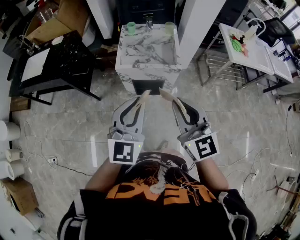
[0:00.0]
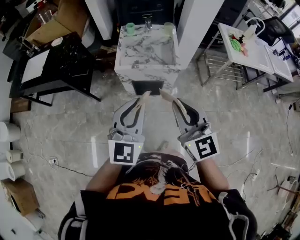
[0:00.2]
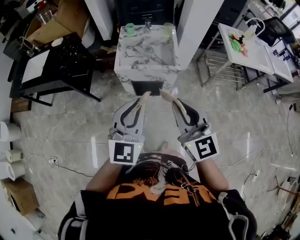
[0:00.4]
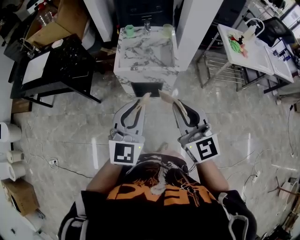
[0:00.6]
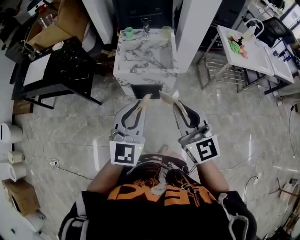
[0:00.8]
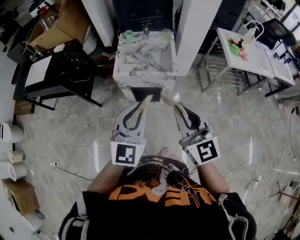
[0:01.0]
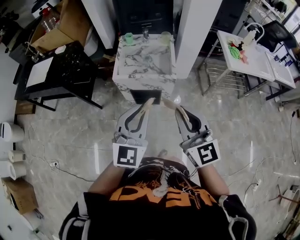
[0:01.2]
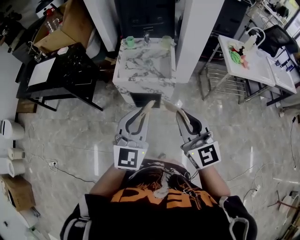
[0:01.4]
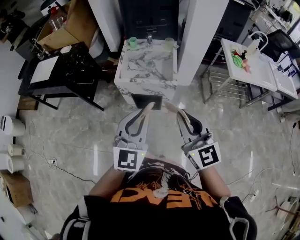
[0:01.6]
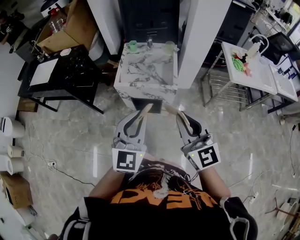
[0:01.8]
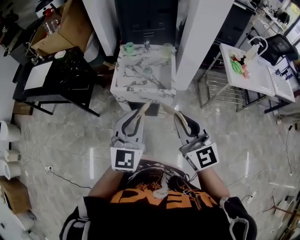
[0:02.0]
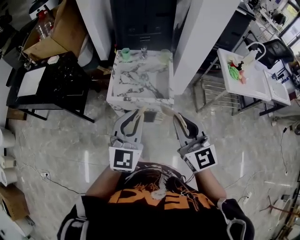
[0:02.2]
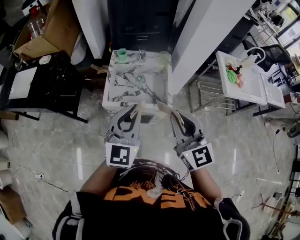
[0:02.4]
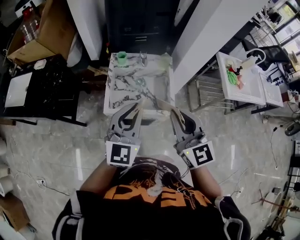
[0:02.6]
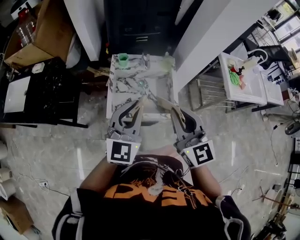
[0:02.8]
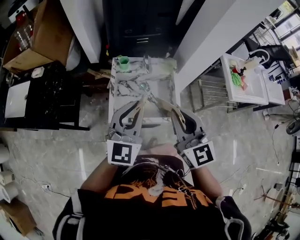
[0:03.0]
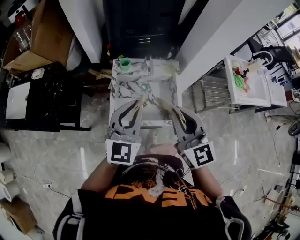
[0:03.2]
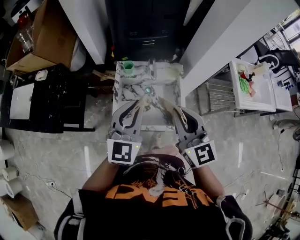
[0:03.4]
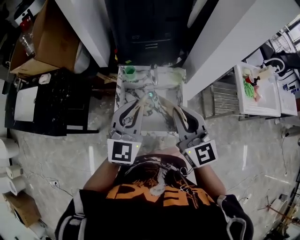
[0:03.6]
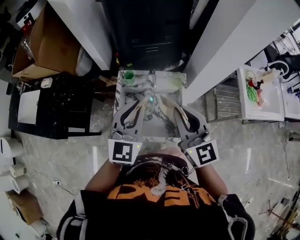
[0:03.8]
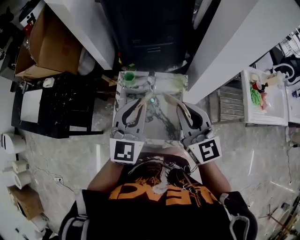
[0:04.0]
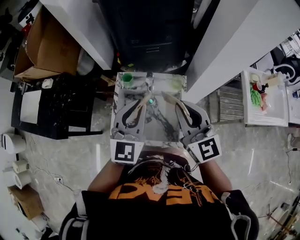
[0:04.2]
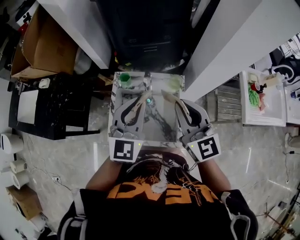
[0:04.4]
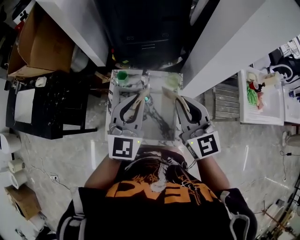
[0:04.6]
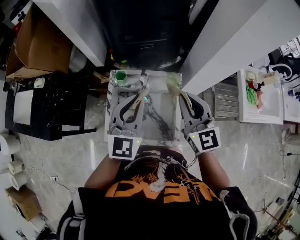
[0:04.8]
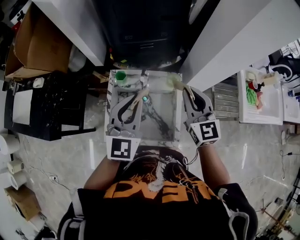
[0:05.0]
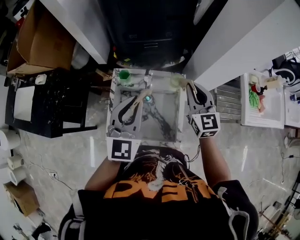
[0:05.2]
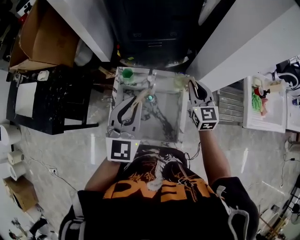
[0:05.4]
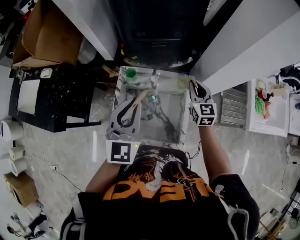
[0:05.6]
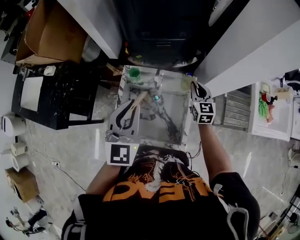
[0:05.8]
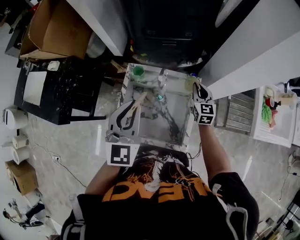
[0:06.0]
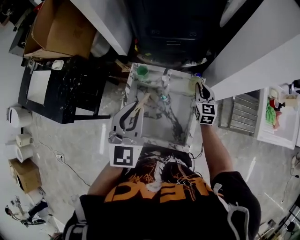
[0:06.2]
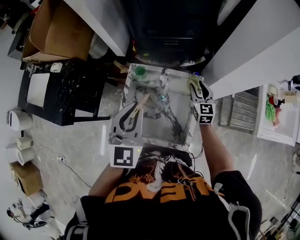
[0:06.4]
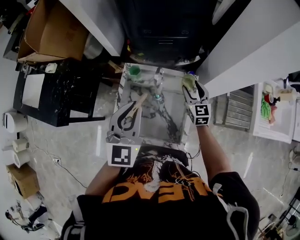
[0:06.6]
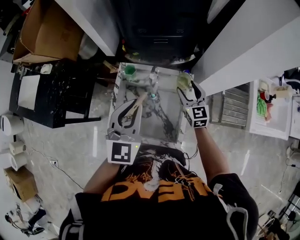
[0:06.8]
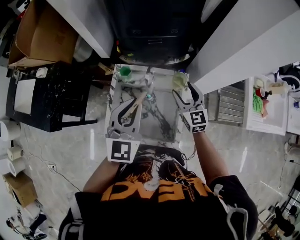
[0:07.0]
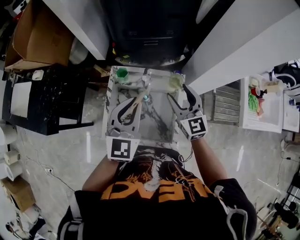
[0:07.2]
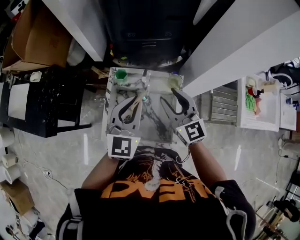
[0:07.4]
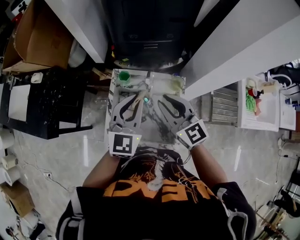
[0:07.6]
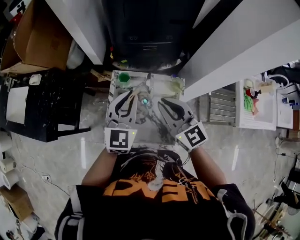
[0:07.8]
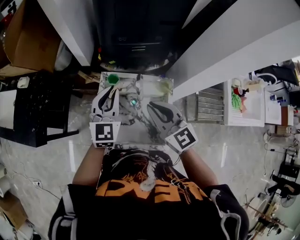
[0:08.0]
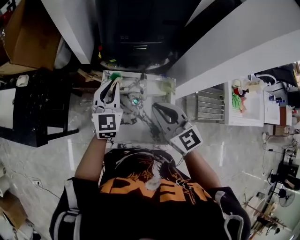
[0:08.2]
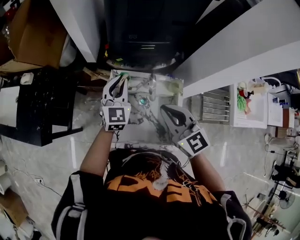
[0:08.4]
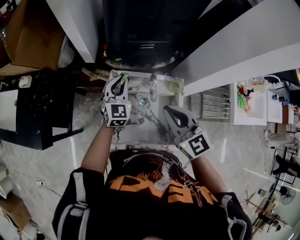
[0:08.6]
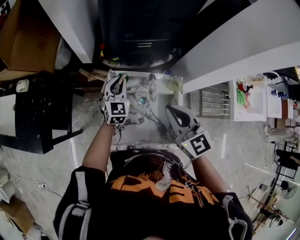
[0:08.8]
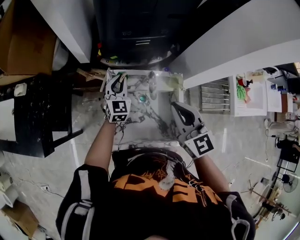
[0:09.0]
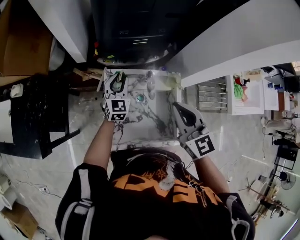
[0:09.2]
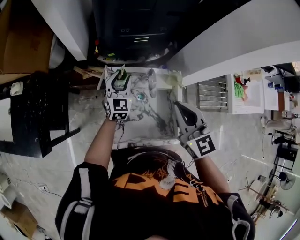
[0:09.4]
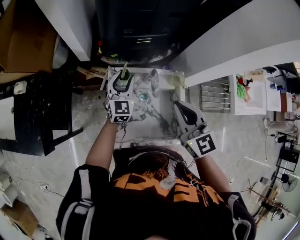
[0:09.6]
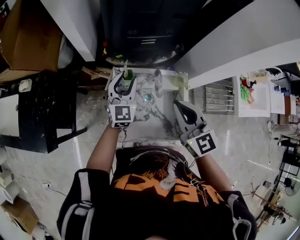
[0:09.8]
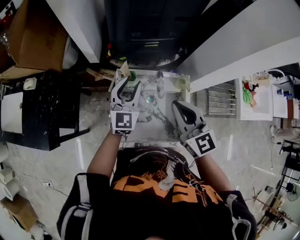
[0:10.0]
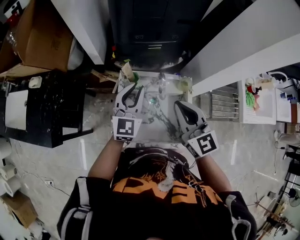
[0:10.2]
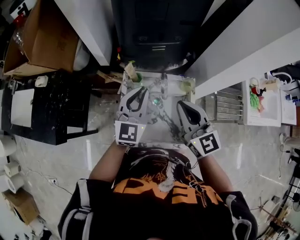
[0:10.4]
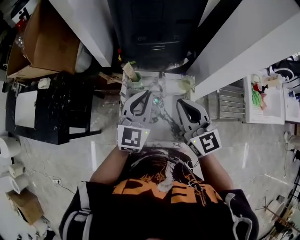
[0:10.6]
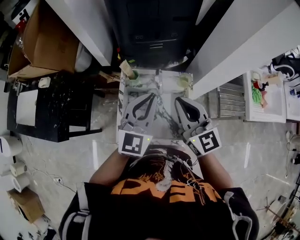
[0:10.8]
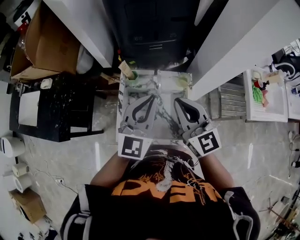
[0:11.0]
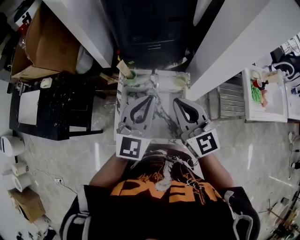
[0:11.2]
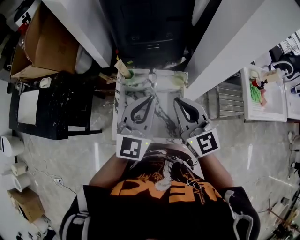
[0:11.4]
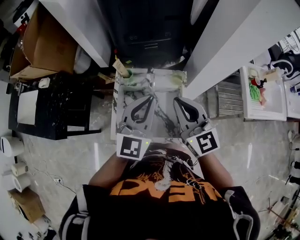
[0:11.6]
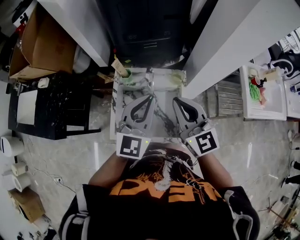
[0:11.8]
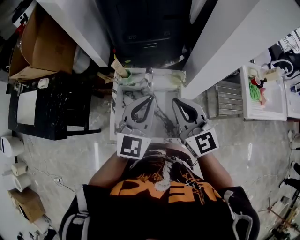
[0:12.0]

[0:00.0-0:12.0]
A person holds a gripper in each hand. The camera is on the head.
0:00.0 to 0:01.6: Both grippers move to the right, about 10 cm.
0:01.6 to 0:03.0: The grippers both shift forward by roughly 35 cm.
0:03.0 to 0:04.4: Both grippers travel together forward and to the right, roughly 20 cm.
0:04.4 to 0:06.0: The right gripper goes about 30 cm downward and forward, and changes its angle by some 20 degrees. Meanwhile the left gripper moves to the left, some 5 cm.
0:06.0 to 0:07.6: The right gripper moves upward, to the left and backward, roughly 25 cm, rotates about 30 degrees, and opens and closes again.
0:07.6 to 0:09.0: The left gripper travels downward and forward by some 25 cm.
0:09.0 to 0:10.4: The left gripper goes about 20 cm upward and backward, and opens and closes again.
0:10.4 to 0:12.0: The right gripper is displaced to the right by about 5 cm, while the left gripper is displaced to the right, backward and upward by approximately 15 cm.

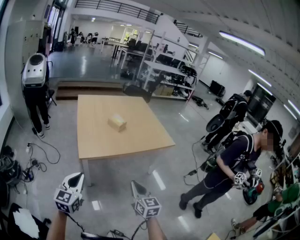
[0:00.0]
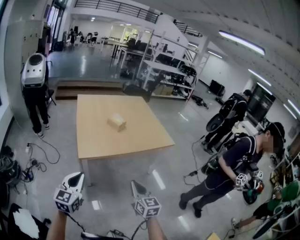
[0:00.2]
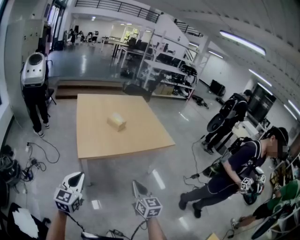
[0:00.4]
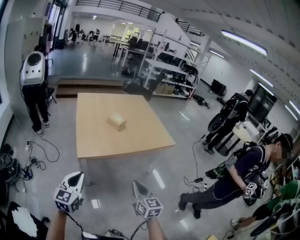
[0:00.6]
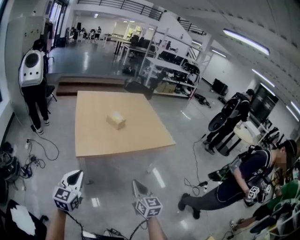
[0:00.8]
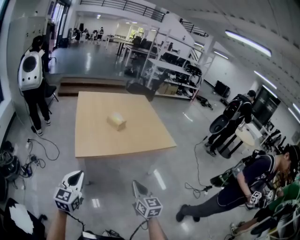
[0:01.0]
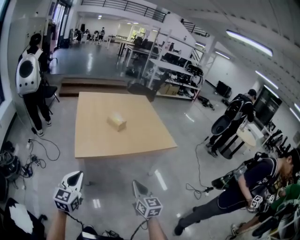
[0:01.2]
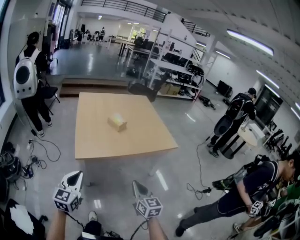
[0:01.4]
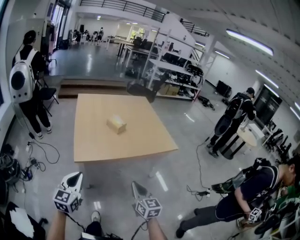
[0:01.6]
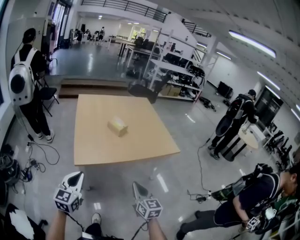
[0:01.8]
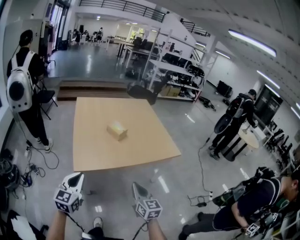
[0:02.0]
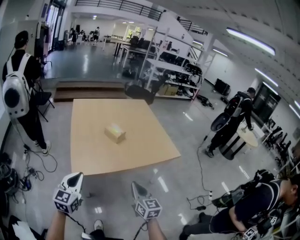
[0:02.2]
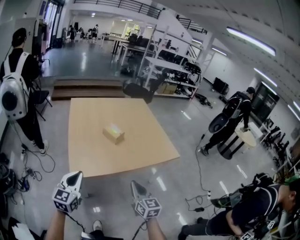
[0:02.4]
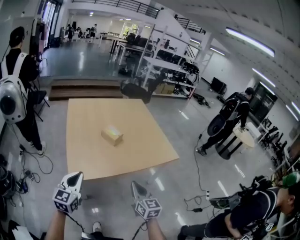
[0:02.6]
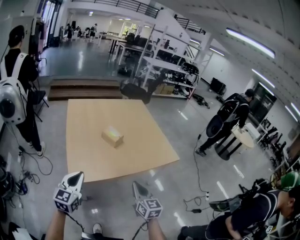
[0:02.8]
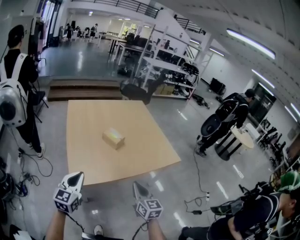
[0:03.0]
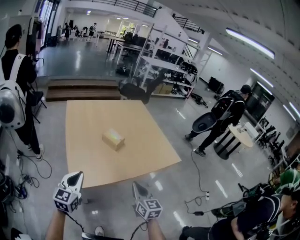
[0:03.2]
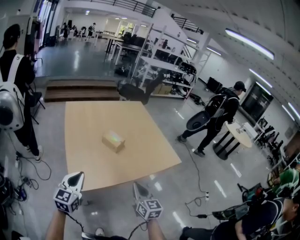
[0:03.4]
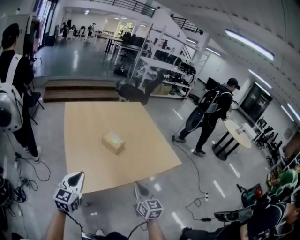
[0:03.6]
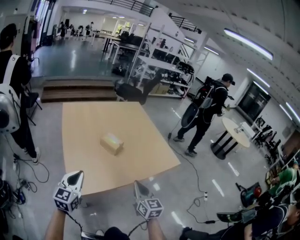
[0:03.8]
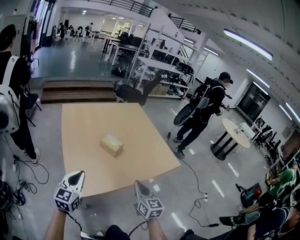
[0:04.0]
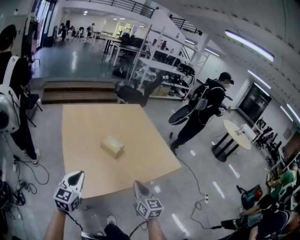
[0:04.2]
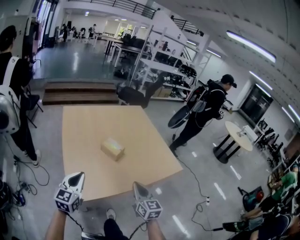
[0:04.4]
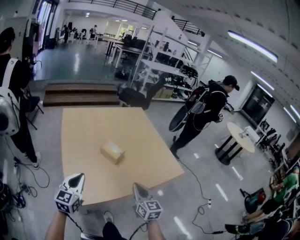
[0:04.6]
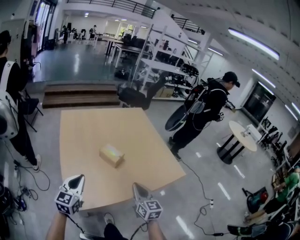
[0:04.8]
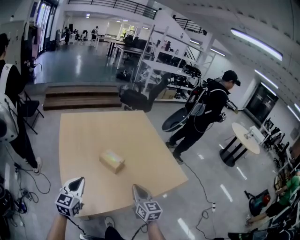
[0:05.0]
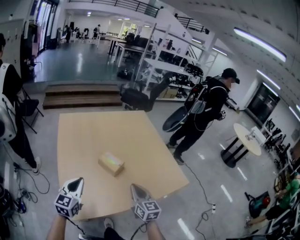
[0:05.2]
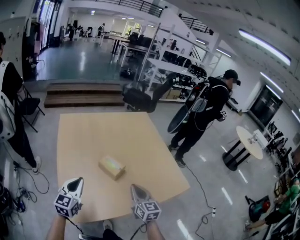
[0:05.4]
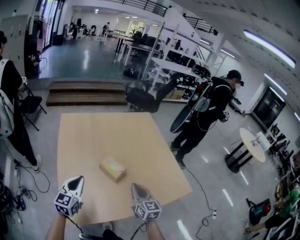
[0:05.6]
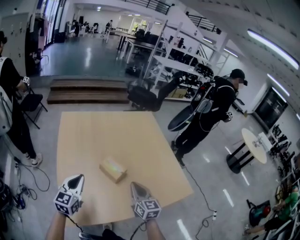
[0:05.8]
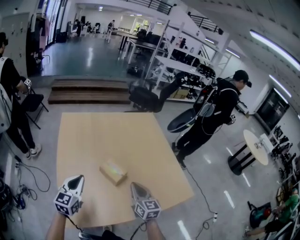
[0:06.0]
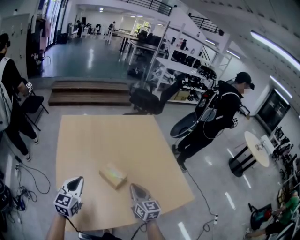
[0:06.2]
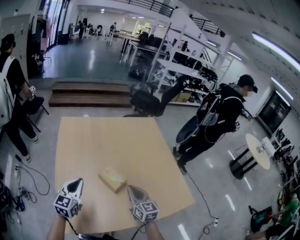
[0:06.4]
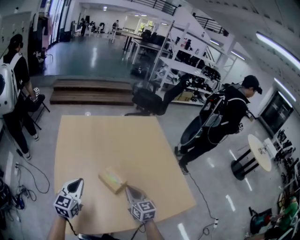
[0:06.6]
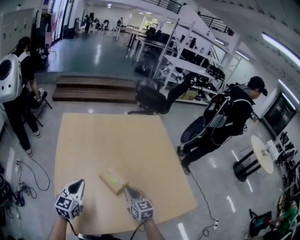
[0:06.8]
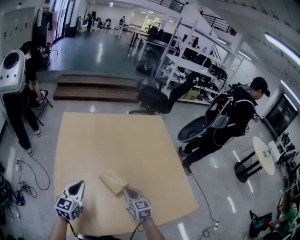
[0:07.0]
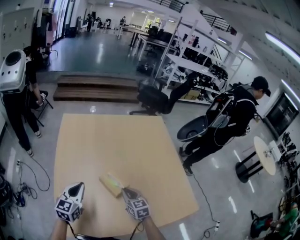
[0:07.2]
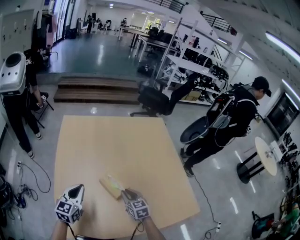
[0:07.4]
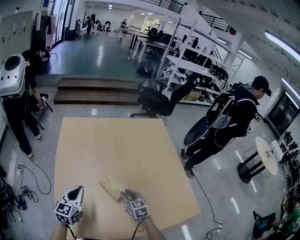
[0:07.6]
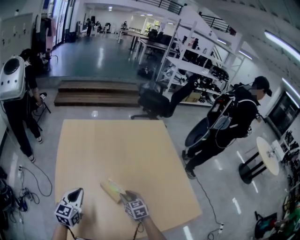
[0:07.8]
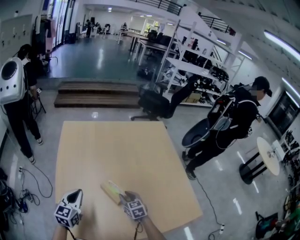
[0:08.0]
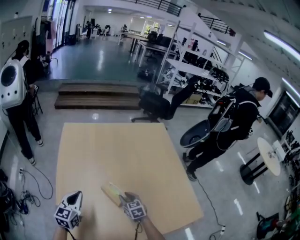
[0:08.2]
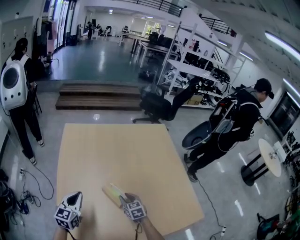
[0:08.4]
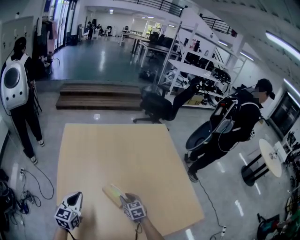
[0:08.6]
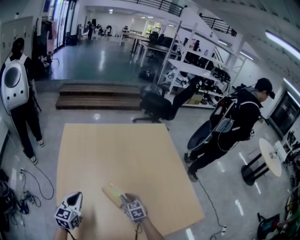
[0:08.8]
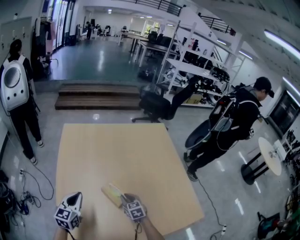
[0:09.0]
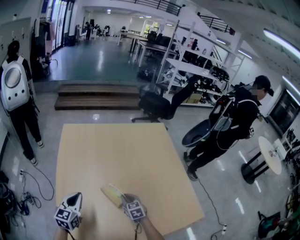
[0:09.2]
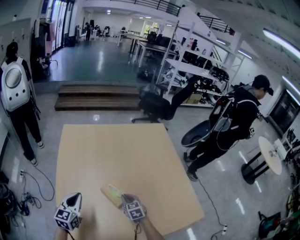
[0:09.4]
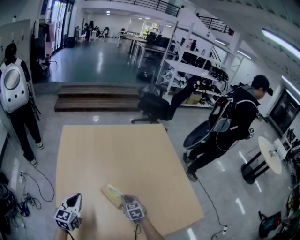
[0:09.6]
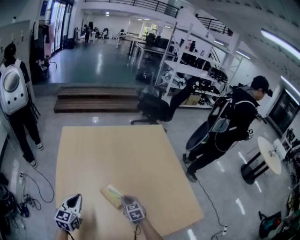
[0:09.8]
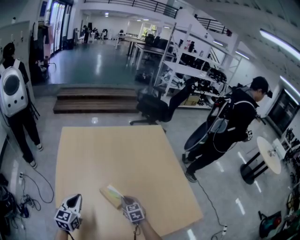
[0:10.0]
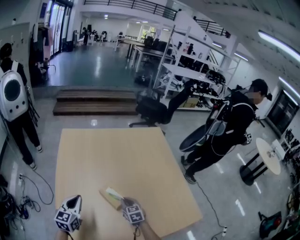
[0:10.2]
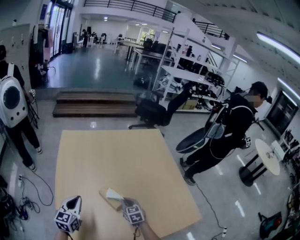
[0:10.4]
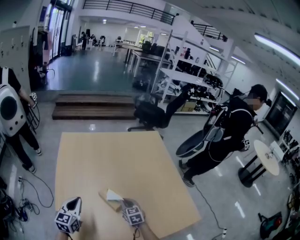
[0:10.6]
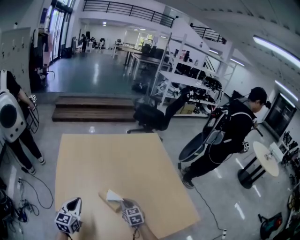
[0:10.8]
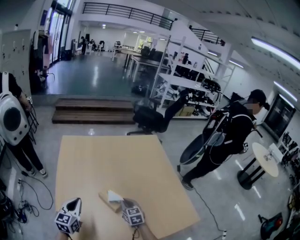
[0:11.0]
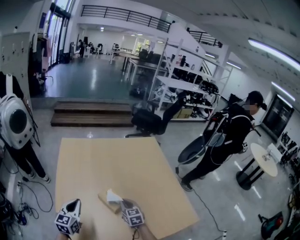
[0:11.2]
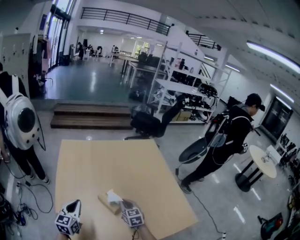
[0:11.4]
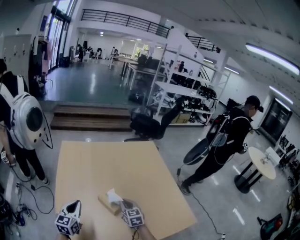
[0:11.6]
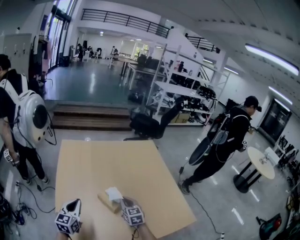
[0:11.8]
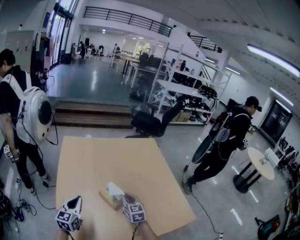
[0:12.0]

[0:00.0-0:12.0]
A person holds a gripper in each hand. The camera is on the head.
0:00.0 to 0:01.6: Both grippers move forward, about 5 cm.
0:01.6 to 0:03.0: The two grippers go approximately 15 cm forward.
0:03.0 to 0:04.4: The two grippers go approximately 10 cm forward.
0:04.4 to 0:06.0: Both grippers move forward, roughly 20 cm.
0:06.0 to 0:07.6: The left gripper shifts some 5 cm forward. Meanwhile the right gripper moves downward and forward, about 15 cm, rotates about 20 degrees, and opens its fingers.
0:07.6 to 0:09.0: The right gripper changes place by about 5 cm.
0:09.0 to 0:10.4: The grippers move only a little.
0:10.4 to 0:12.0: The right gripper goes roughly 10 cm upward.
